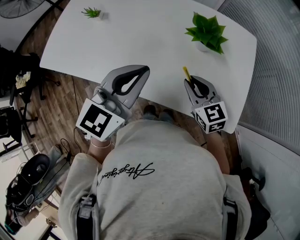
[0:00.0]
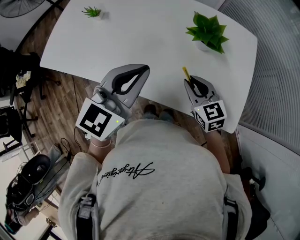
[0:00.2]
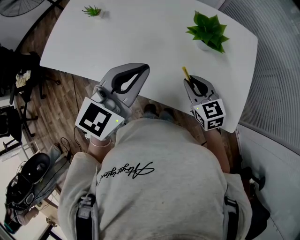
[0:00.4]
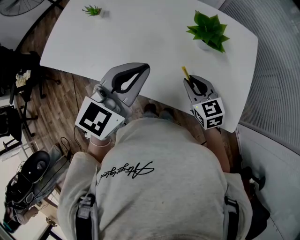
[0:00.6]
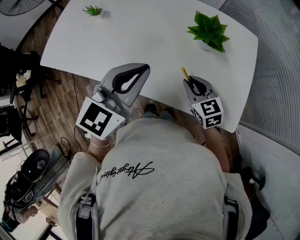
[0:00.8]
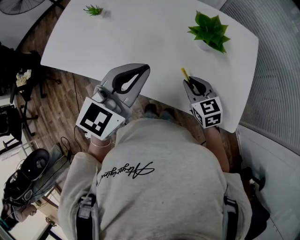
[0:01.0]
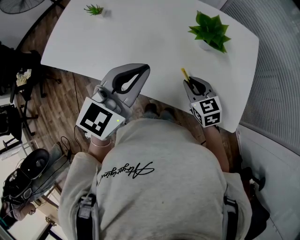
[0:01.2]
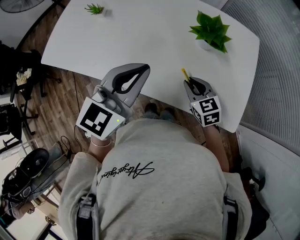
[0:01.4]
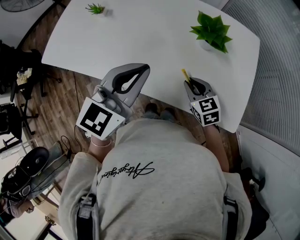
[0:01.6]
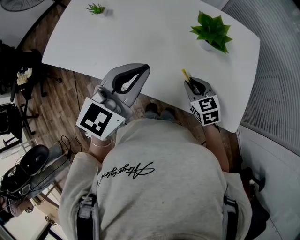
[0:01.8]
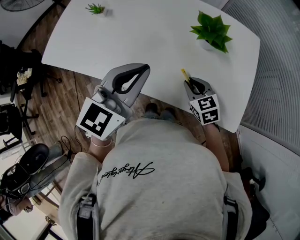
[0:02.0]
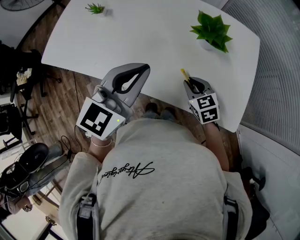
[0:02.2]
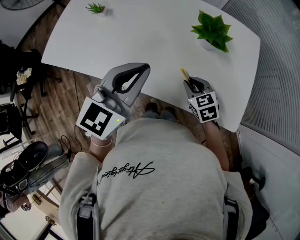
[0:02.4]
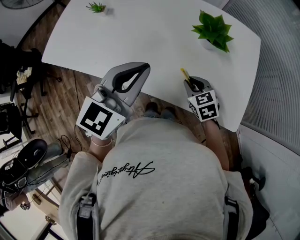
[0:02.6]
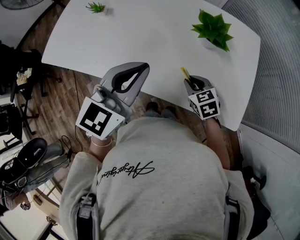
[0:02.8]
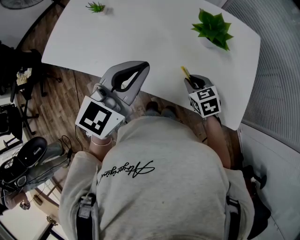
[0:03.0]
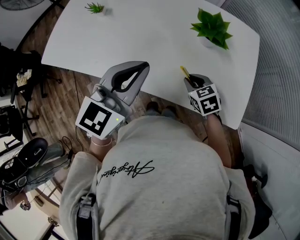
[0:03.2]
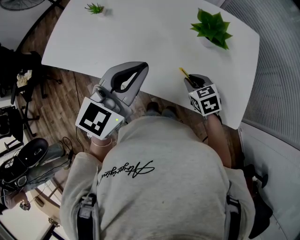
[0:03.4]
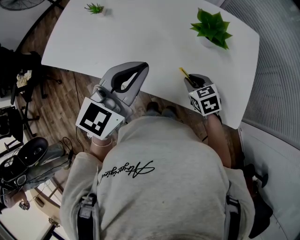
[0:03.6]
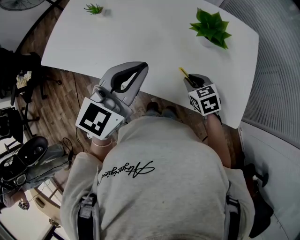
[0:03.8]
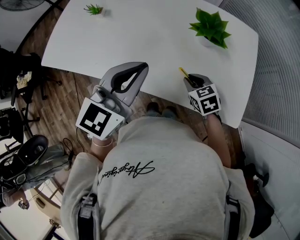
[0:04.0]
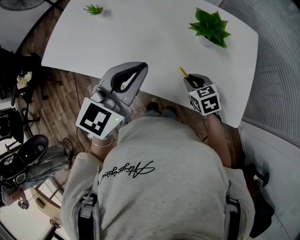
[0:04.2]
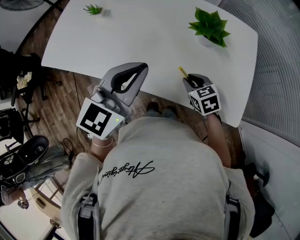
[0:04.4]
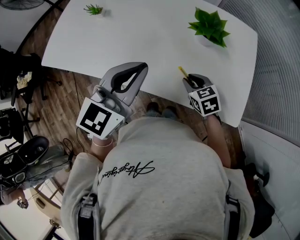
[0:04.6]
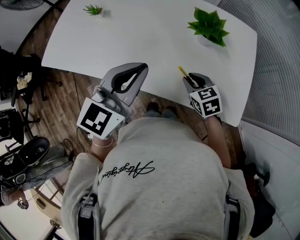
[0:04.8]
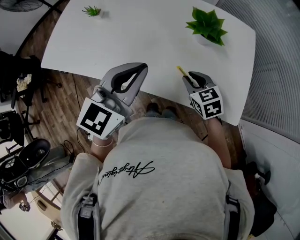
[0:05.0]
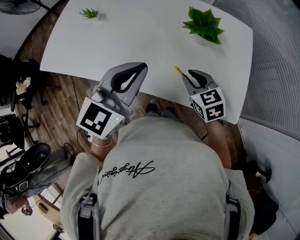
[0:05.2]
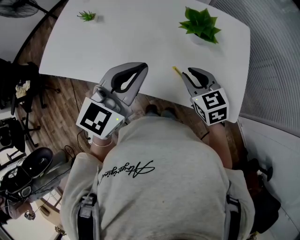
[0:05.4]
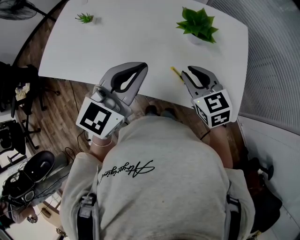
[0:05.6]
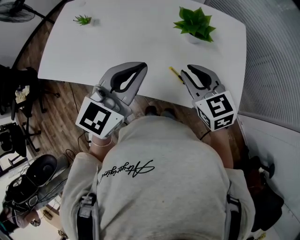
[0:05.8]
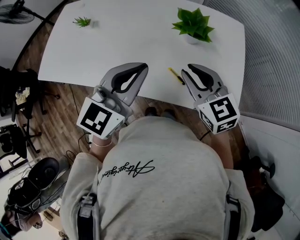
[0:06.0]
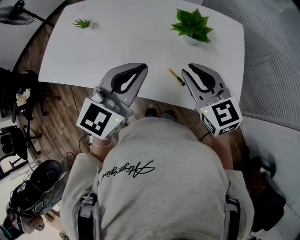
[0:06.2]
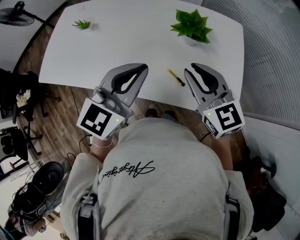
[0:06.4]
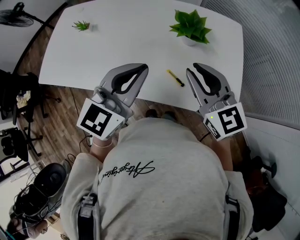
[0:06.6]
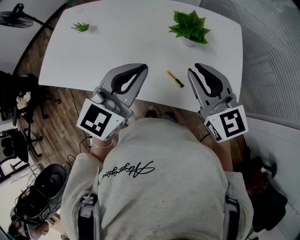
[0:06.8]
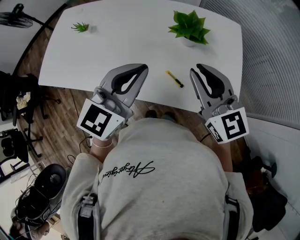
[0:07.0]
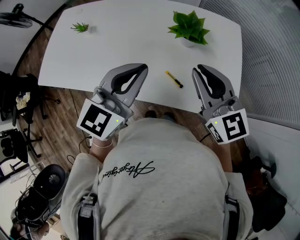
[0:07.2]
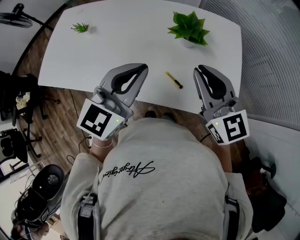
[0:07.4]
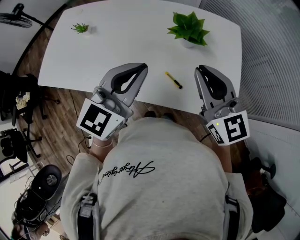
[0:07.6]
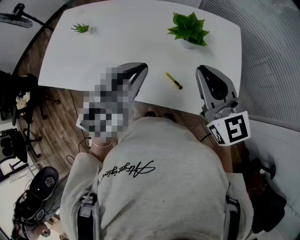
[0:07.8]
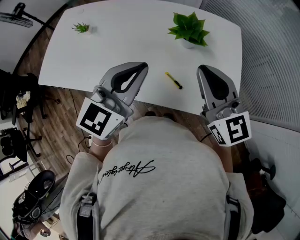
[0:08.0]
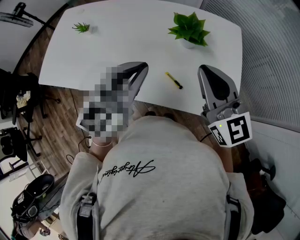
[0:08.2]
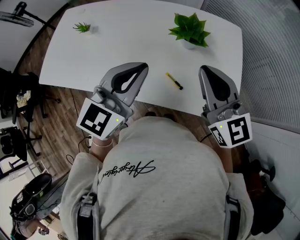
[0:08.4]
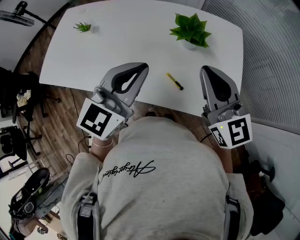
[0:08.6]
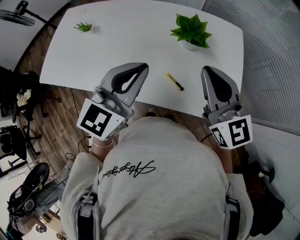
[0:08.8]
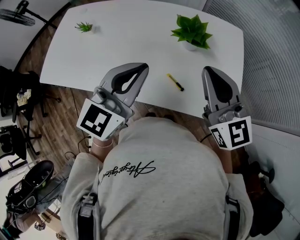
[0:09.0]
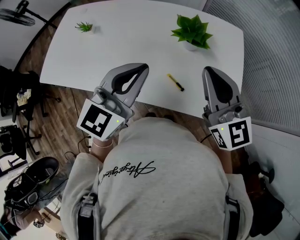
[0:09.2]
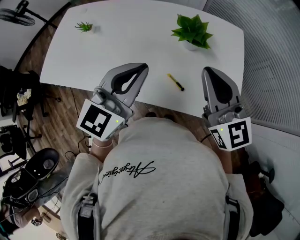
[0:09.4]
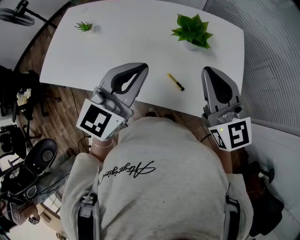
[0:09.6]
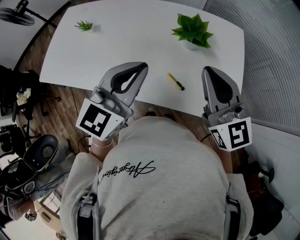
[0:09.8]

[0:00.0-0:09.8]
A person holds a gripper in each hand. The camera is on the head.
0:00.0 to 0:01.4: The right gripper moves downward, about 5 cm.
0:01.4 to 0:02.8: The grippers make only small movements.
0:02.8 to 0:04.2: The two grippers keep their place.
0:04.2 to 0:05.6: The right gripper shifts approximately 15 cm upward.
0:05.6 to 0:07.0: The right gripper is displaced upward by some 10 cm, and swivels about 20 degrees.
0:07.0 to 0:08.4: The grippers move only a little.
0:08.4 to 0:09.8: Both grippers stay about where they are.

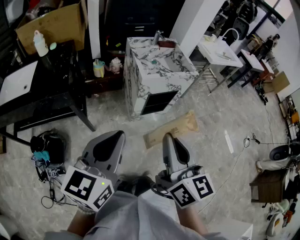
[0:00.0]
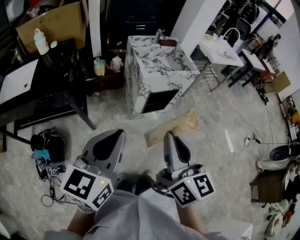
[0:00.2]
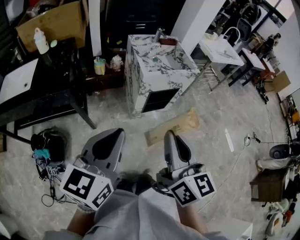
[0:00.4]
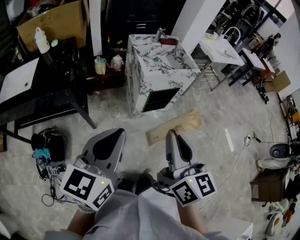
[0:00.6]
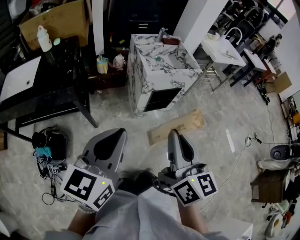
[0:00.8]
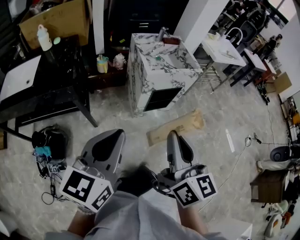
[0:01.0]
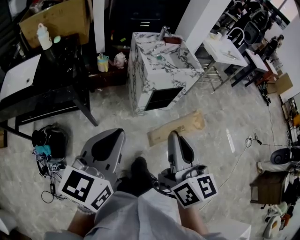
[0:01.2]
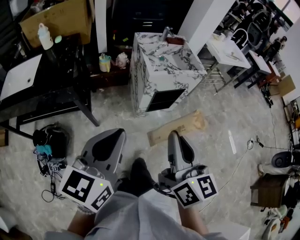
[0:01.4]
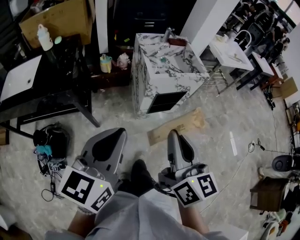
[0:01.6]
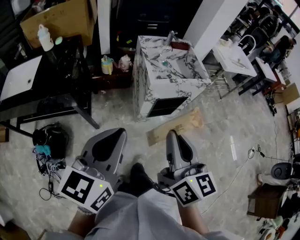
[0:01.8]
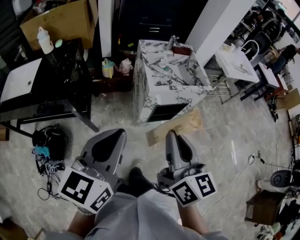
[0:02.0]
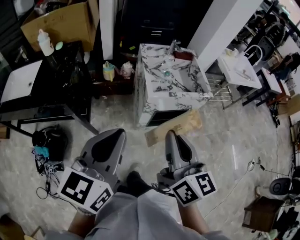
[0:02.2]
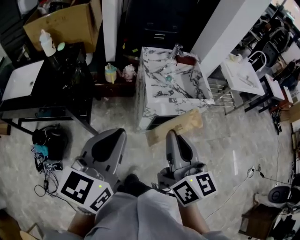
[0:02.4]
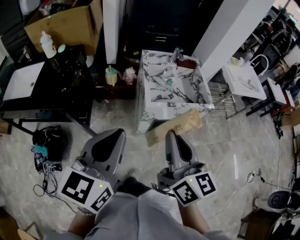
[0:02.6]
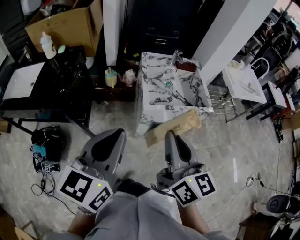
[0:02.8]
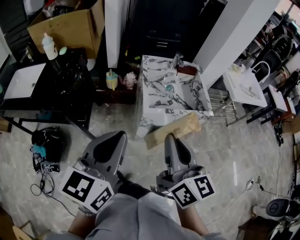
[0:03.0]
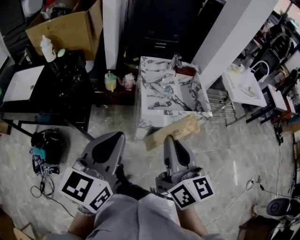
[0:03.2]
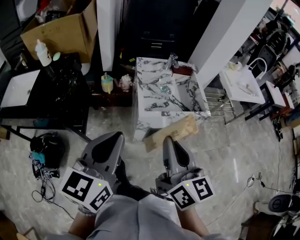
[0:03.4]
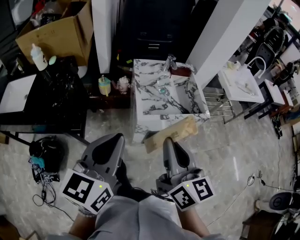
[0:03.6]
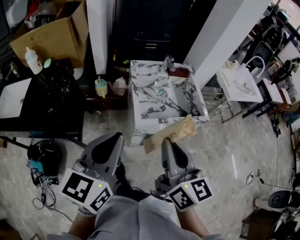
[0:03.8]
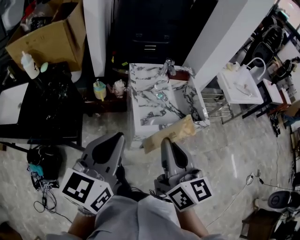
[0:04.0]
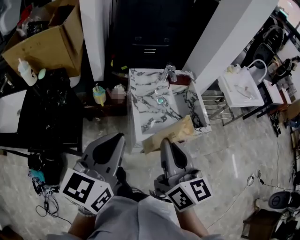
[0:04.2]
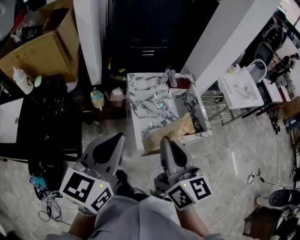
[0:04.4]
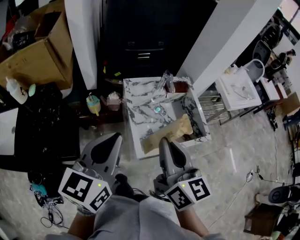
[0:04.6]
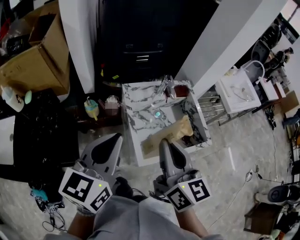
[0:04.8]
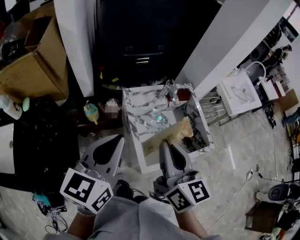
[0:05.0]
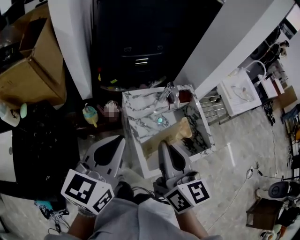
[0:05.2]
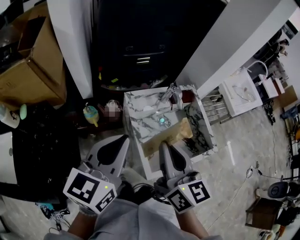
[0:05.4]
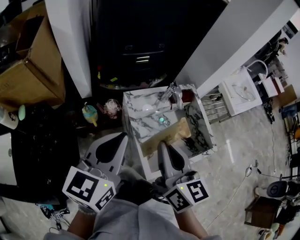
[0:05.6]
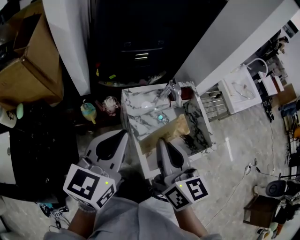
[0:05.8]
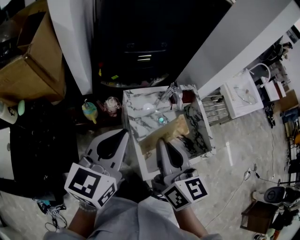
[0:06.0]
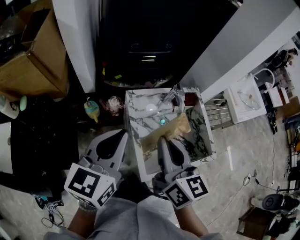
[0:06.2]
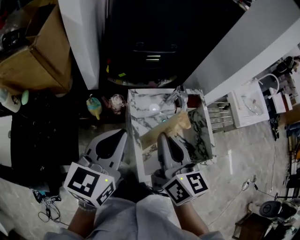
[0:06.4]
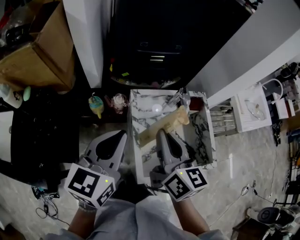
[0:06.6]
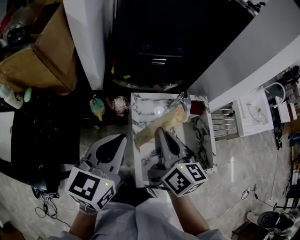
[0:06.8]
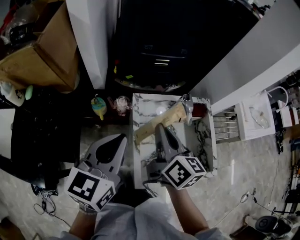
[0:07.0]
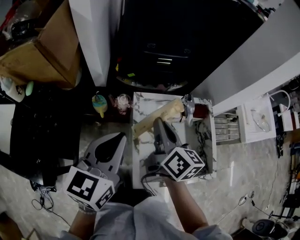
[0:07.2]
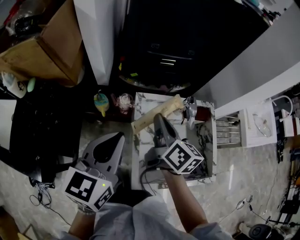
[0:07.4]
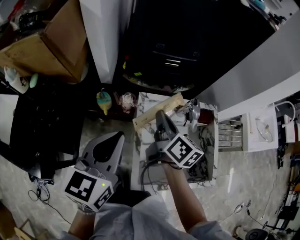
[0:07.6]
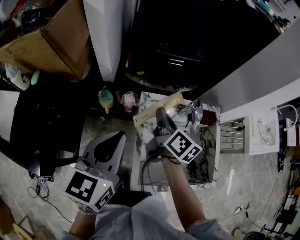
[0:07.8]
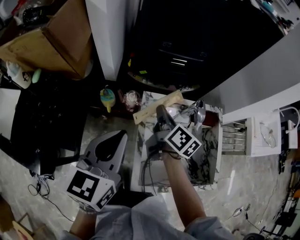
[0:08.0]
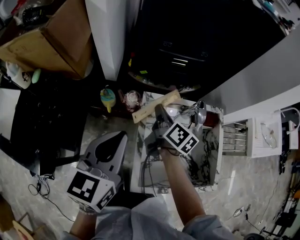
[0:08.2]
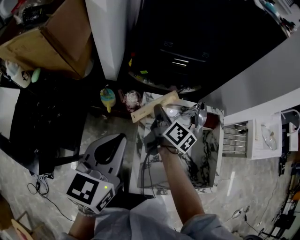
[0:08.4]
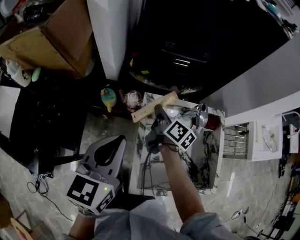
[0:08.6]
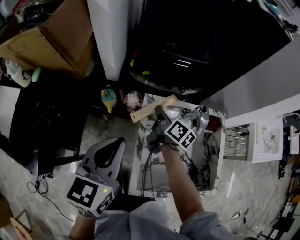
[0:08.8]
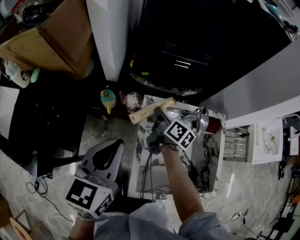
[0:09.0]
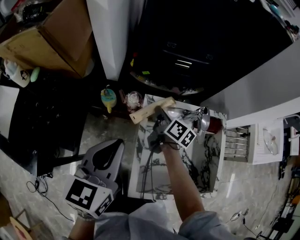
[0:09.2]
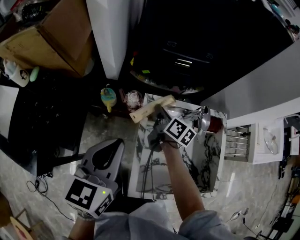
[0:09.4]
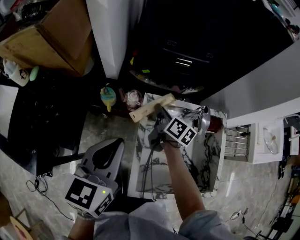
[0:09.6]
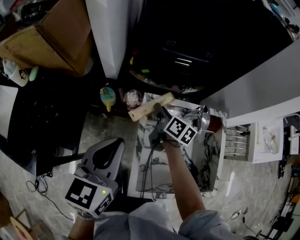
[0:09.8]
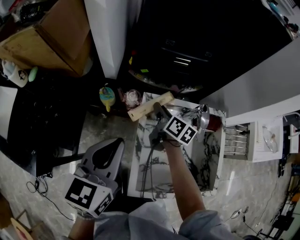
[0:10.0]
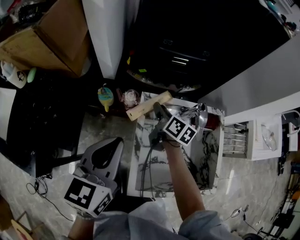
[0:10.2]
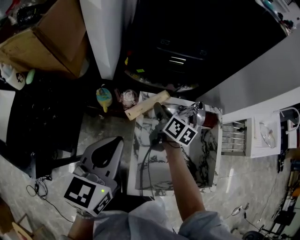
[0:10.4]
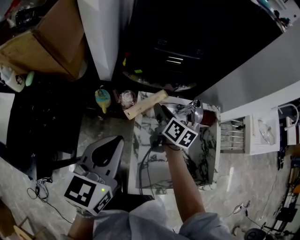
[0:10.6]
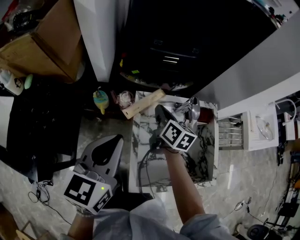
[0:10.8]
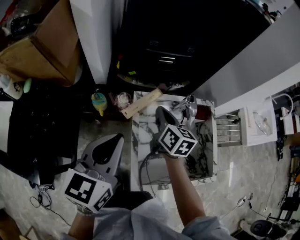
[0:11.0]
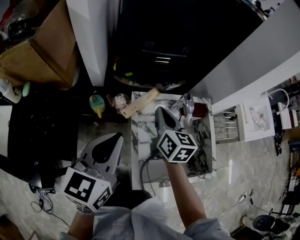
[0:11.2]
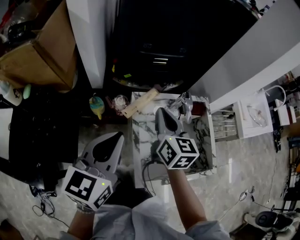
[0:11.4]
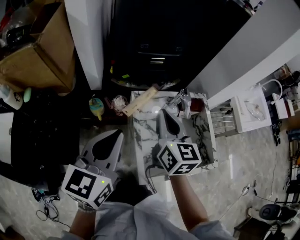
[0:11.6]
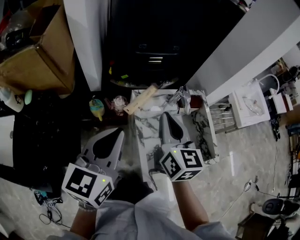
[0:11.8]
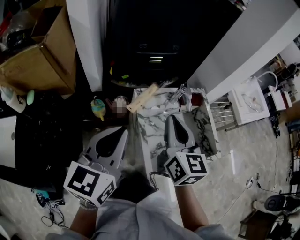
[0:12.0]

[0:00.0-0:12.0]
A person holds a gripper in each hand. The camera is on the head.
0:00.0 to 0:01.6: The right gripper heads forward, covering about 5 cm.
0:01.6 to 0:03.0: The grippers both shift forward and to the right by some 20 cm.
0:03.0 to 0:04.4: Both grippers travel together forward, some 20 cm.
0:04.4 to 0:06.0: The right gripper heads forward and to the left, covering approximately 20 cm. Meanwhile the left gripper heads forward, covering about 20 cm.
0:06.0 to 0:07.6: The right gripper heads forward and downward, covering some 20 cm, and changes its angle by roughly 30 degrees.
0:07.6 to 0:09.0: The right gripper moves downward and forward, about 15 cm.
0:09.0 to 0:10.4: The right gripper opens its fingers.
0:10.4 to 0:12.0: The left gripper heads upward and backward, covering roughly 10 cm. Meanwhile the right gripper heads upward and backward, covering roughly 30 cm, rotates approximately 40 degrees, and closes.

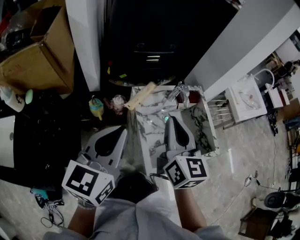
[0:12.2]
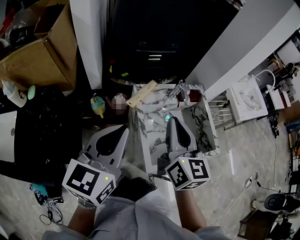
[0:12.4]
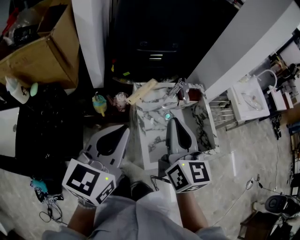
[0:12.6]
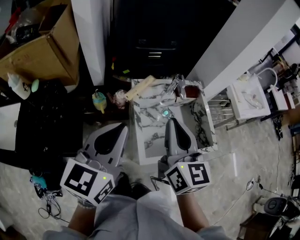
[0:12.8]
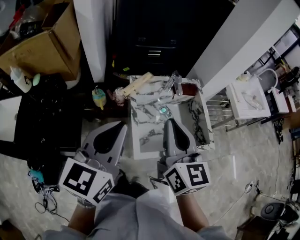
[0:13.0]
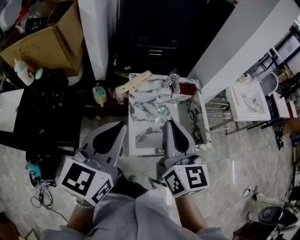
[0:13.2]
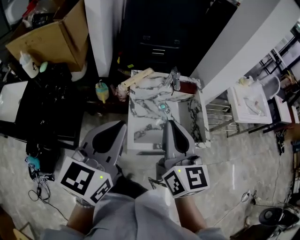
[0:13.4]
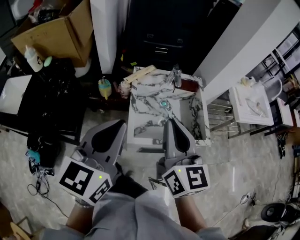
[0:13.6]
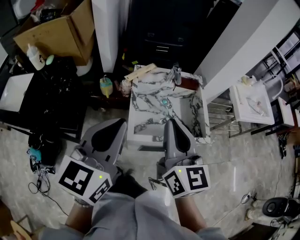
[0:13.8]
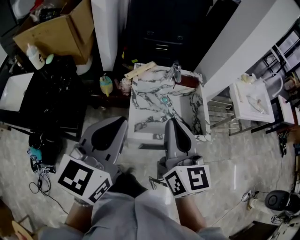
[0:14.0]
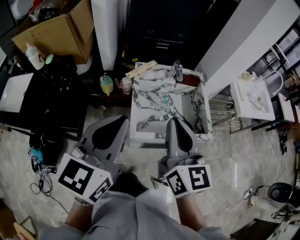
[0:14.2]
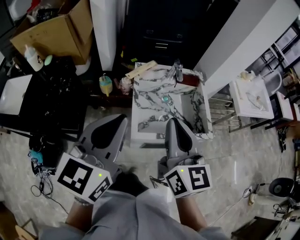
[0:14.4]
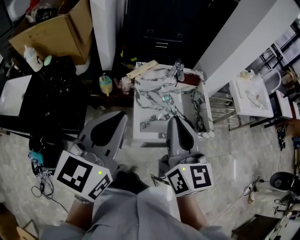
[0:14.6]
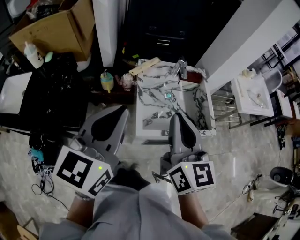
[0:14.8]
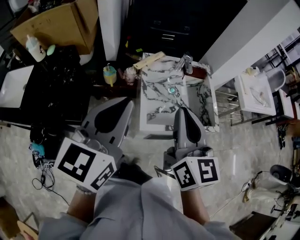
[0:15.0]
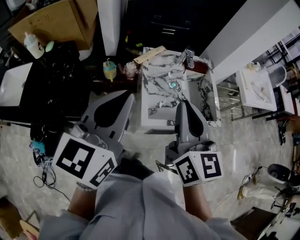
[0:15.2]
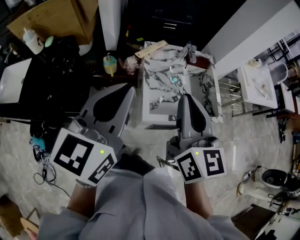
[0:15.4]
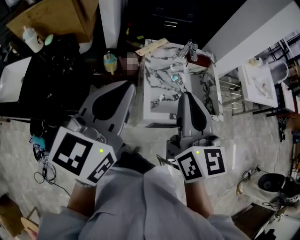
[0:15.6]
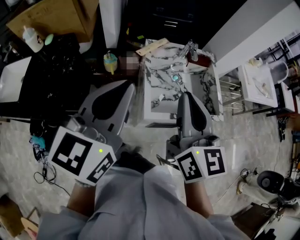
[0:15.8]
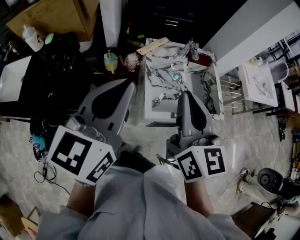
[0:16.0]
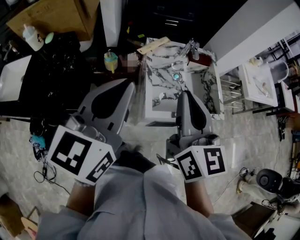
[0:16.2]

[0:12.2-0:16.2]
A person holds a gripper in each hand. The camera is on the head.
0:12.2 to 0:13.6: The grippers both shift backward and to the right by roughly 20 cm.
0:13.6 to 0:14.8: The grippers make only small movements.
0:14.8 to 0:16.2: There are only small adjustments of the grippers.
